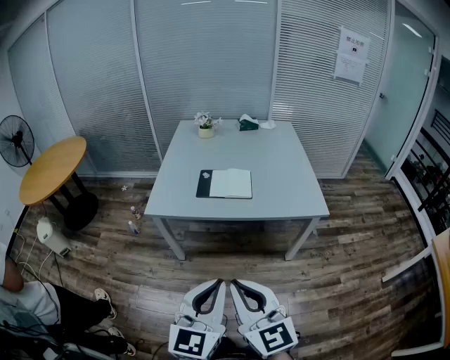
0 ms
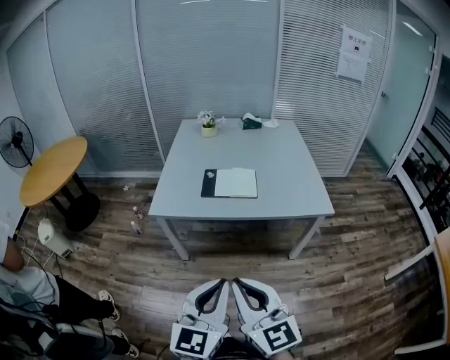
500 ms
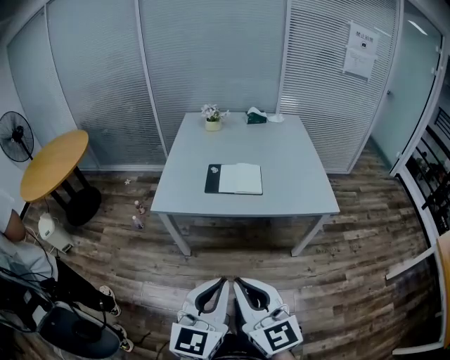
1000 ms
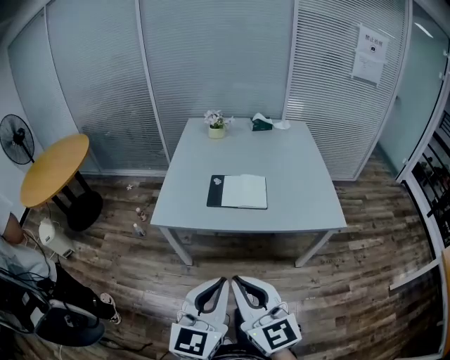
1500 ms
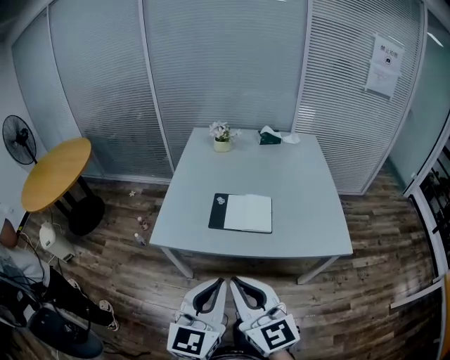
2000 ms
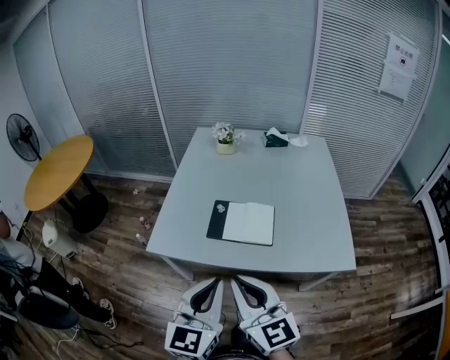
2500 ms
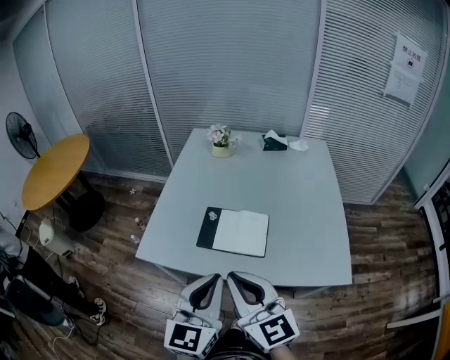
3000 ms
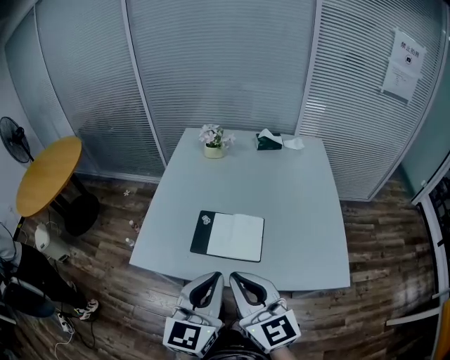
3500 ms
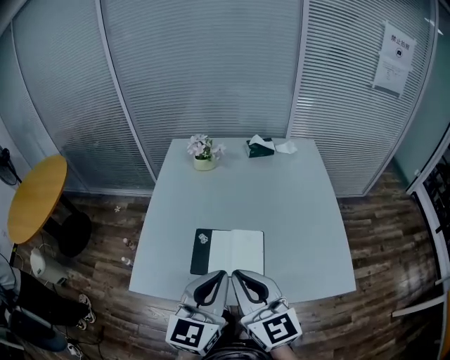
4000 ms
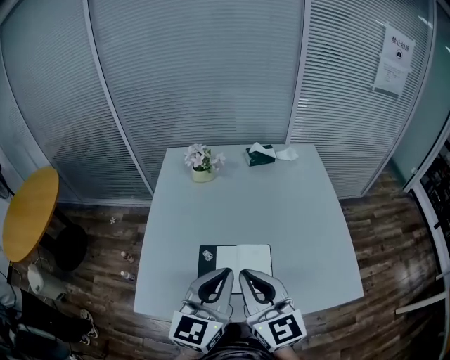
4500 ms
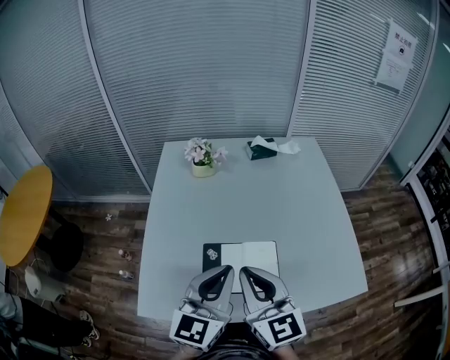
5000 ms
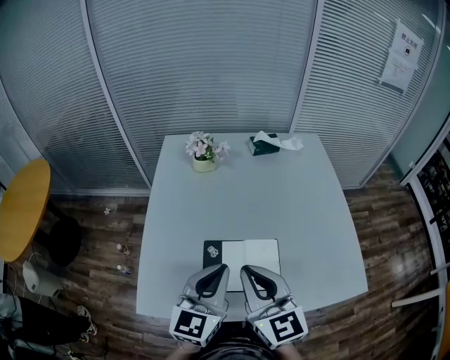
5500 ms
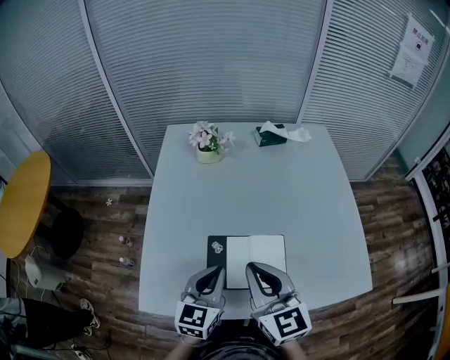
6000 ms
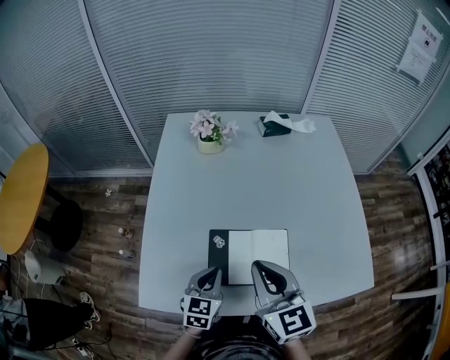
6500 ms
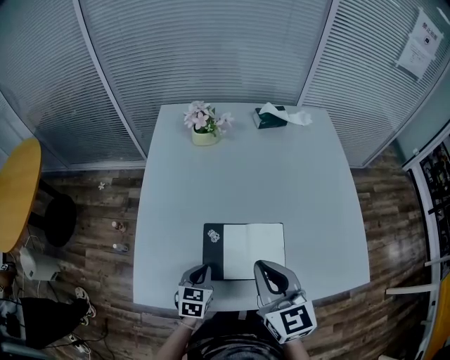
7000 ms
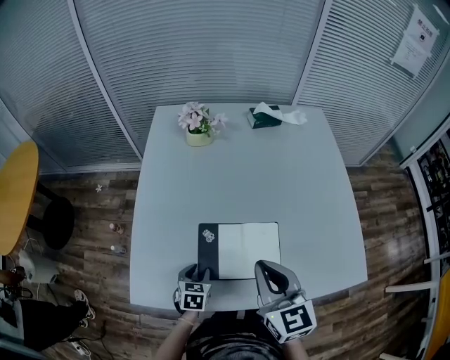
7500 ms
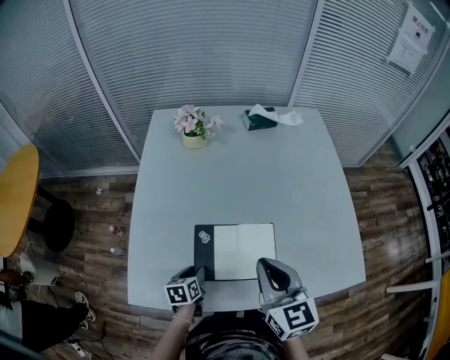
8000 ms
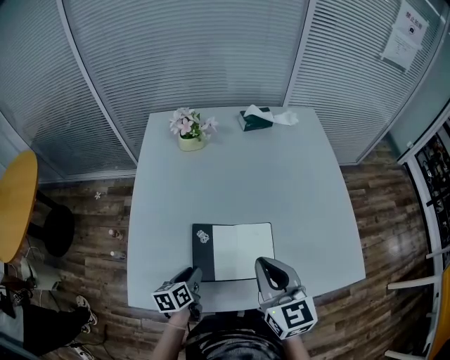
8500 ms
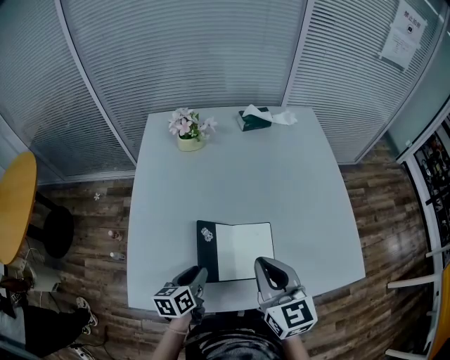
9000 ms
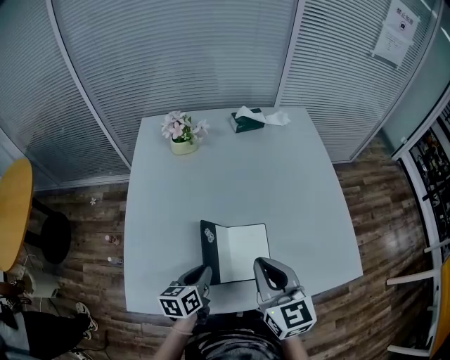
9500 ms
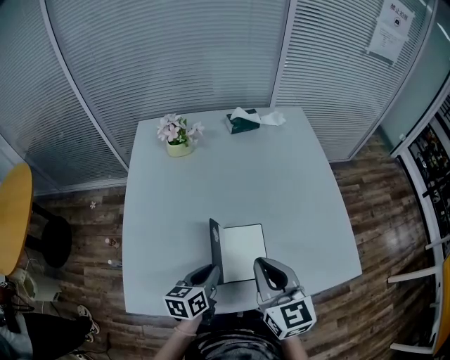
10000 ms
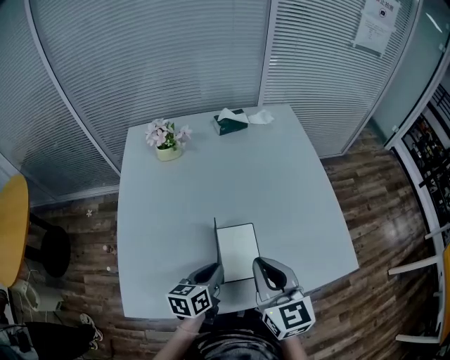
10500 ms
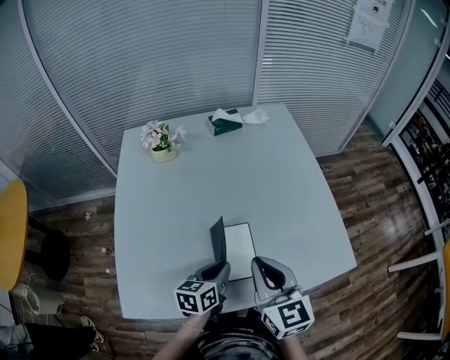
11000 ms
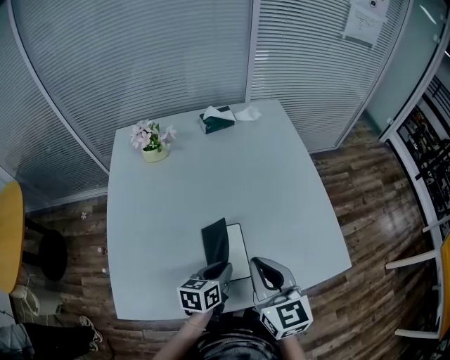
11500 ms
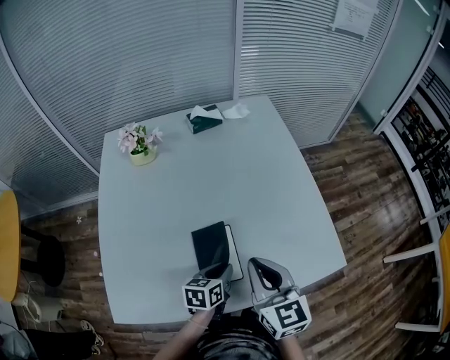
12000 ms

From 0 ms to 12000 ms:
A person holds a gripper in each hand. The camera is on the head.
From 0 ms to 2000 ms: Both grippers move forward, some 20 cm.
From 2000 ms to 4000 ms: The grippers both shift forward by some 25 cm.
From 4000 ms to 6000 ms: The left gripper is displaced downward, forward and to the left by roughly 20 cm. Meanwhile the right gripper moves forward, downward and to the left, roughly 15 cm.
From 6000 ms to 8000 ms: The right gripper shifts about 5 cm to the right, while the left gripper heads downward, covering some 25 cm, points its fingers some 30 degrees further downward, and opens its fingers.
From 8000 ms to 10000 ms: The left gripper moves upward and to the right, about 15 cm, turns by roughly 20 degrees, and closes up.
From 10000 ms to 12000 ms: The right gripper travels to the right by about 10 cm, while the left gripper heads to the right, covering approximately 15 cm.

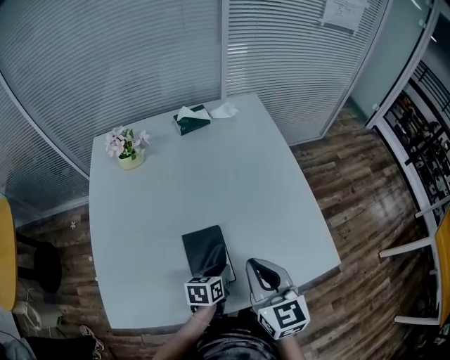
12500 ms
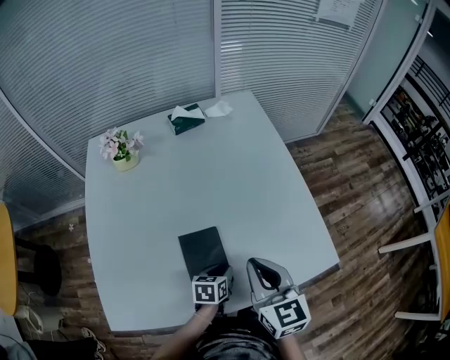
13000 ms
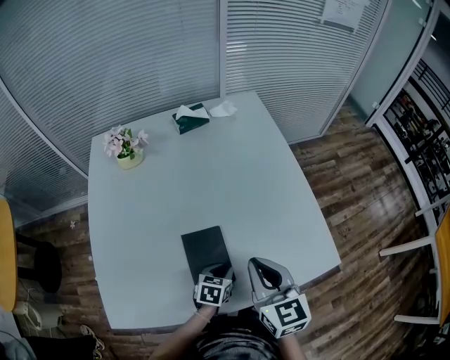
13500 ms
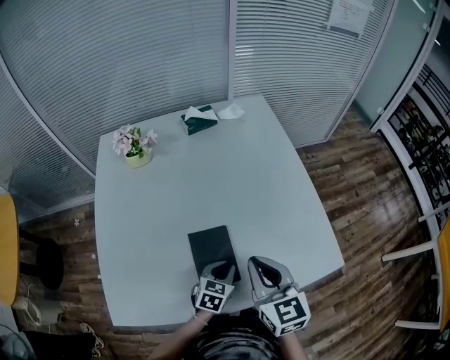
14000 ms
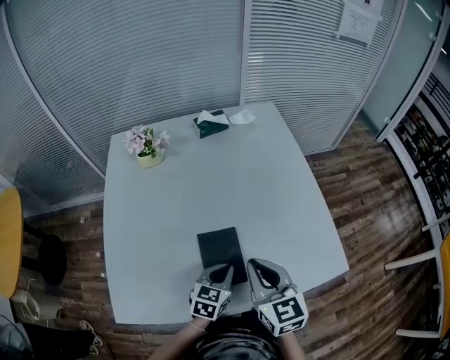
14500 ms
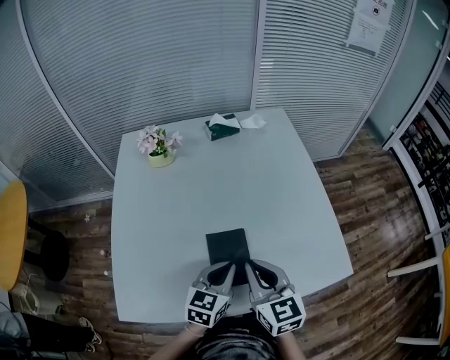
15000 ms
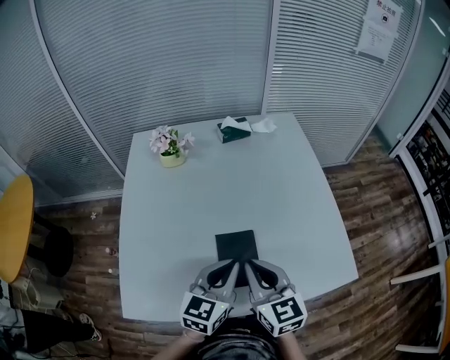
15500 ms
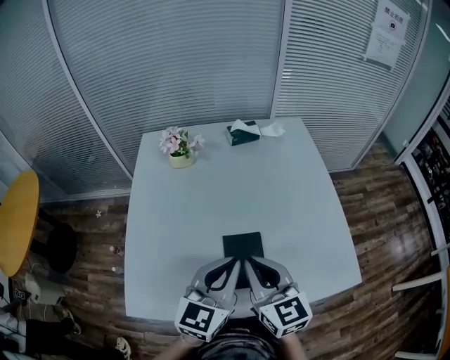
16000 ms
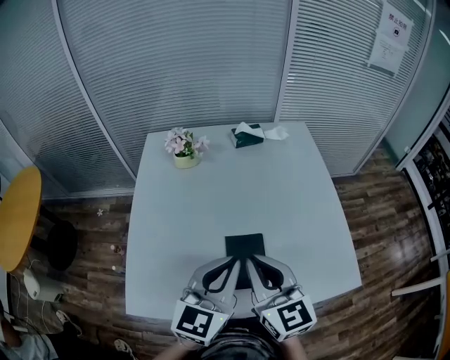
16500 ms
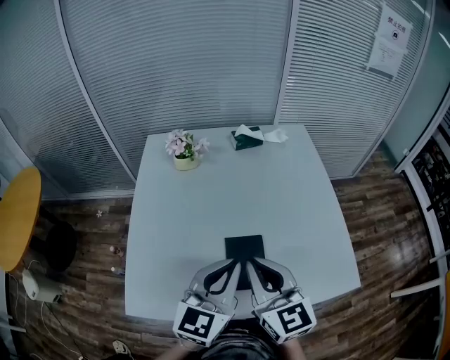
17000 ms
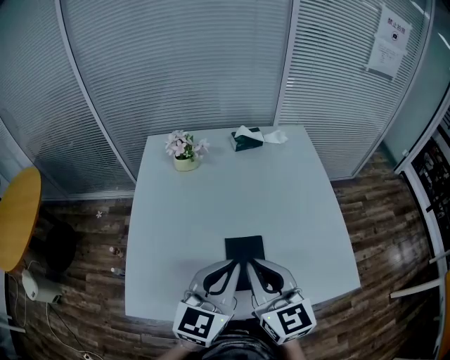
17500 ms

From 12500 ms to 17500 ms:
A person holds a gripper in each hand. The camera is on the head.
From 12500 ms to 15000 ms: The left gripper is displaced upward by approximately 15 cm, swivels roughly 30 degrees, and closes its fingers; the right gripper is displaced to the left by roughly 5 cm.
From 15000 ms to 17500 ms: The right gripper heads upward and to the left, covering about 10 cm; the left gripper travels upward by about 15 cm, and rotates roughly 20 degrees.

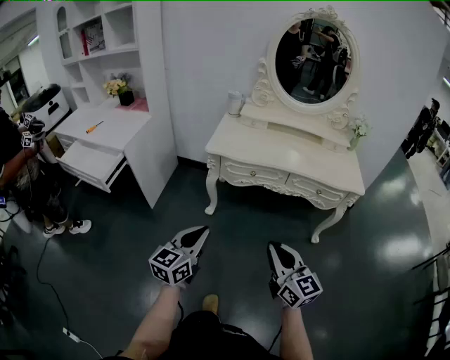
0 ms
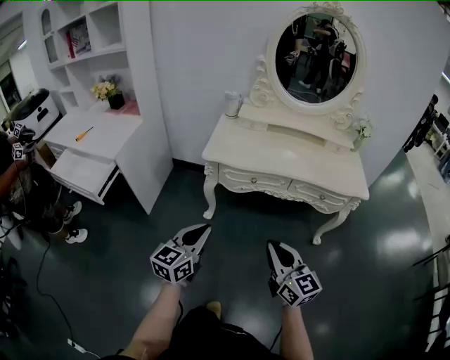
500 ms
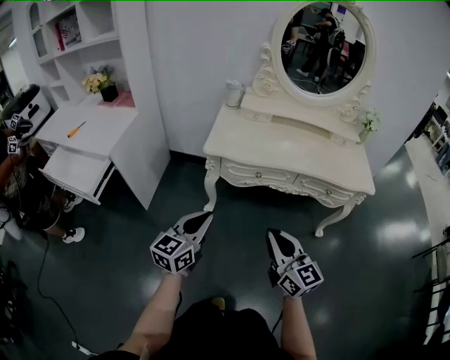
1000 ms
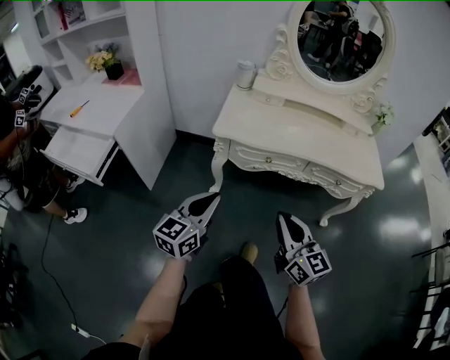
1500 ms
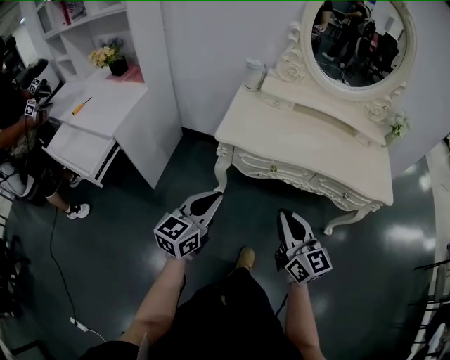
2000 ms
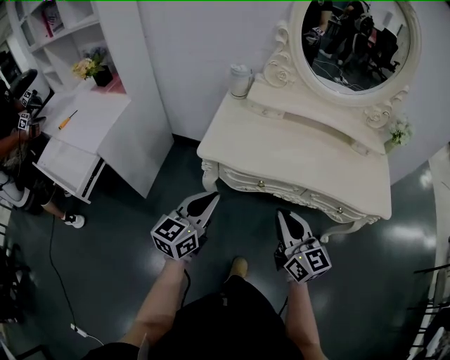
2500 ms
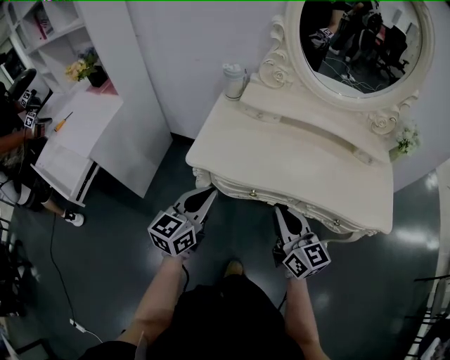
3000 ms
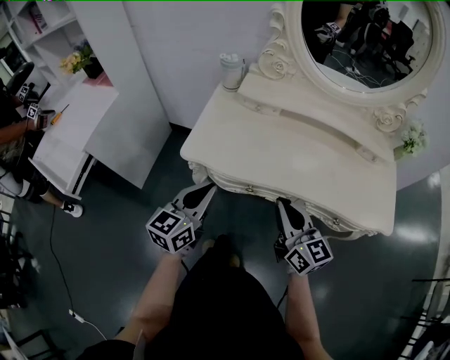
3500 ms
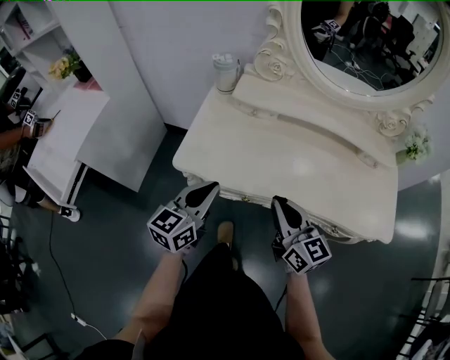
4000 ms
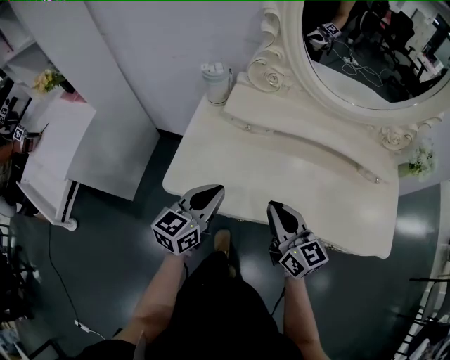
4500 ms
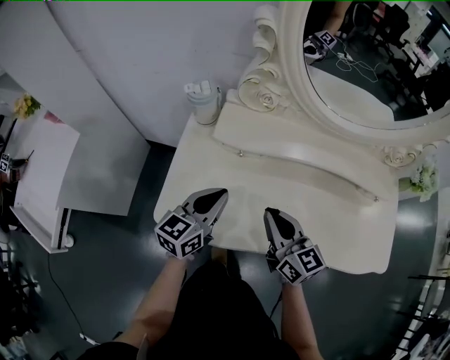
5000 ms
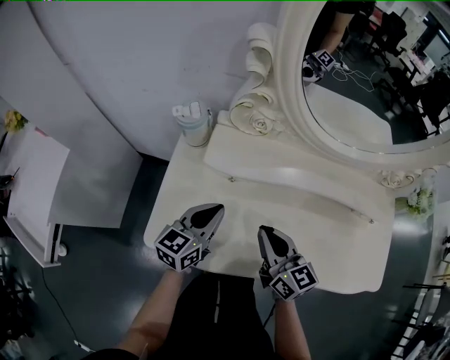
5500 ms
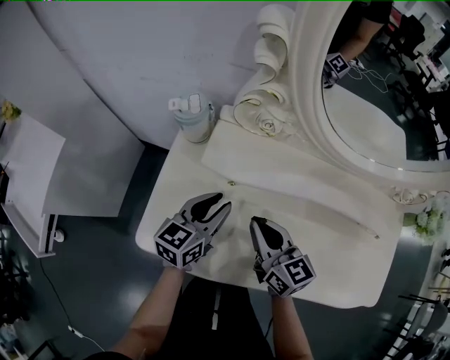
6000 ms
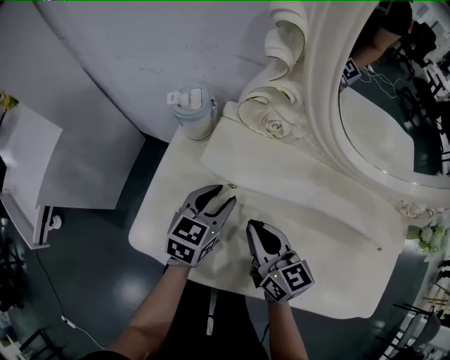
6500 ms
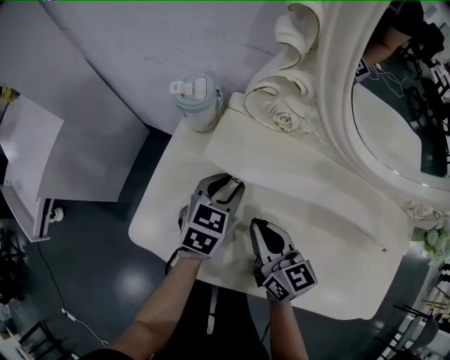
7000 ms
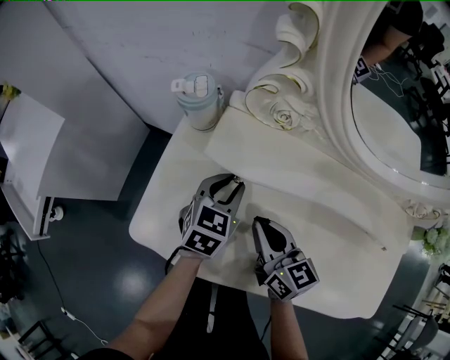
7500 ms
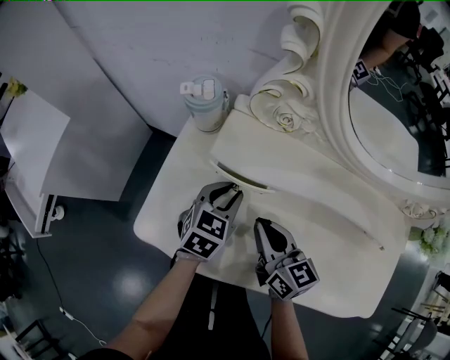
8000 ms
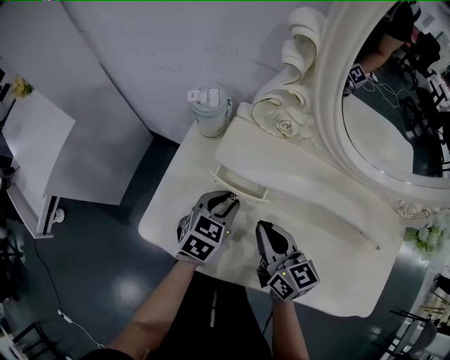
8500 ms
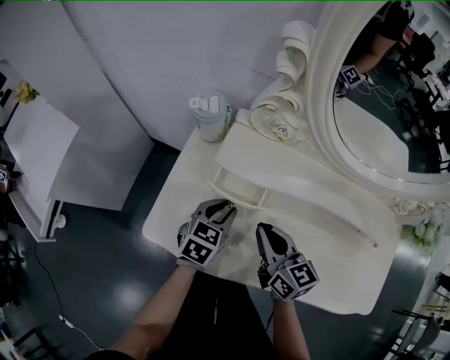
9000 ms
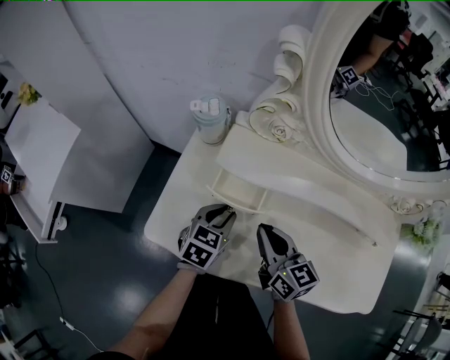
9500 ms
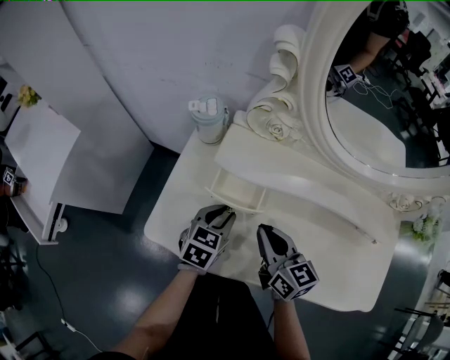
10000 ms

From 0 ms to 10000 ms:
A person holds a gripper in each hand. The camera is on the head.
From 0 ms to 2000 ms: Both grippers move forward, roughly 25 cm.
From 2000 ms to 4000 ms: The two grippers go roughly 30 cm forward and to the right.
From 4000 ms to 6000 ms: Both grippers move forward, some 25 cm. The left gripper opens.
From 6000 ms to 8000 ms: The left gripper moves roughly 5 cm, and changes its angle by some 20 degrees.
From 8000 ms to 10000 ms: The left gripper heads backward, covering approximately 5 cm.
